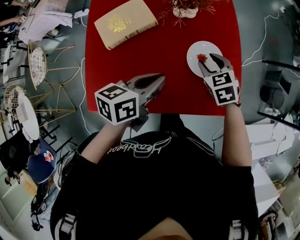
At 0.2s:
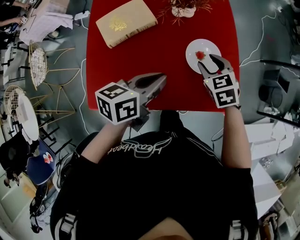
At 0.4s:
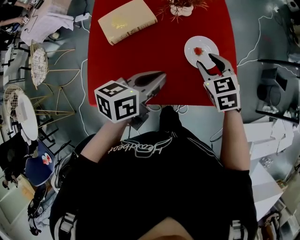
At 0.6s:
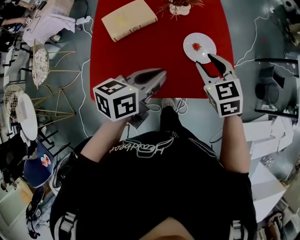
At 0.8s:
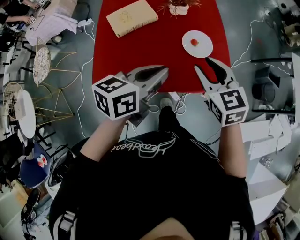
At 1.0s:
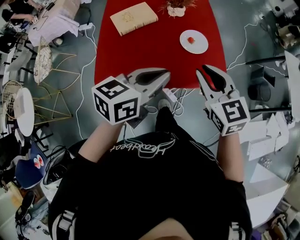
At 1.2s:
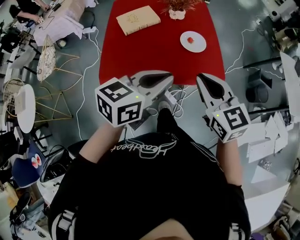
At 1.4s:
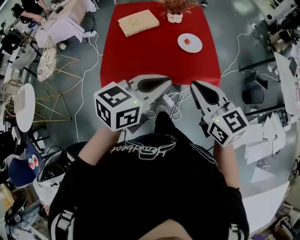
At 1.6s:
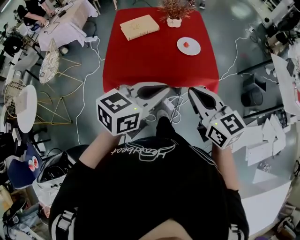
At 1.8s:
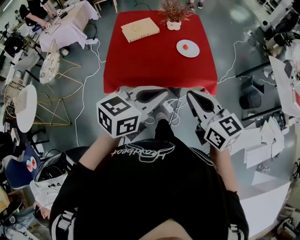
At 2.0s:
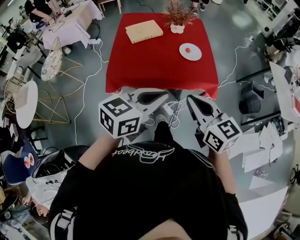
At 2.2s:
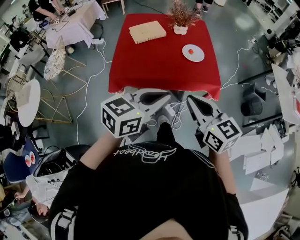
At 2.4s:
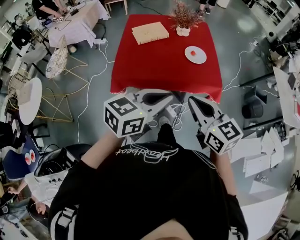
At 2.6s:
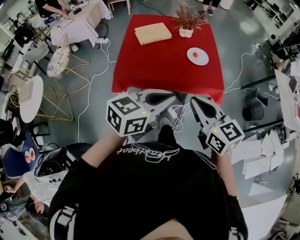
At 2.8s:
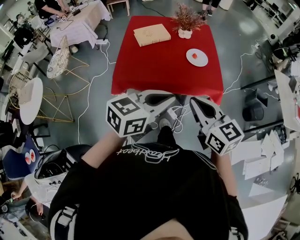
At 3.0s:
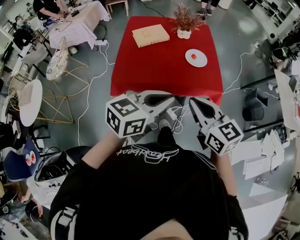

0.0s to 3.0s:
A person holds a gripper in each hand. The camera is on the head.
0.0s to 1.6s: The two grippers go some 40 cm backward and upward. The right gripper tips its fingers upward by roughly 40 degrees, and closes, while the left gripper rotates some 30 degrees.
1.6s to 3.0s: The grippers make only small movements.

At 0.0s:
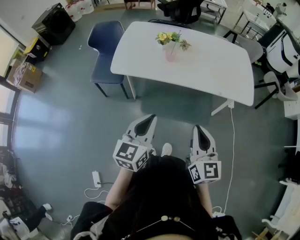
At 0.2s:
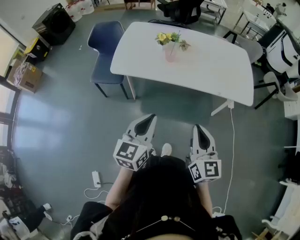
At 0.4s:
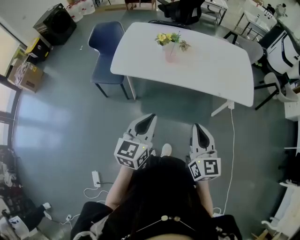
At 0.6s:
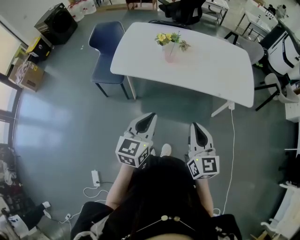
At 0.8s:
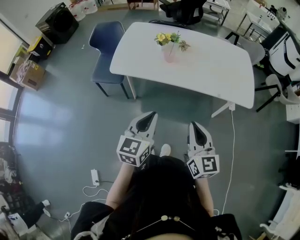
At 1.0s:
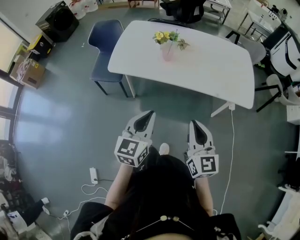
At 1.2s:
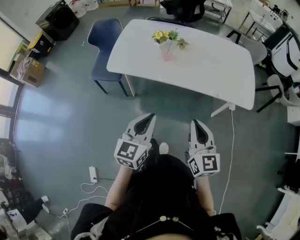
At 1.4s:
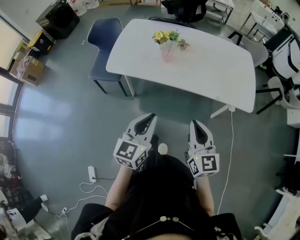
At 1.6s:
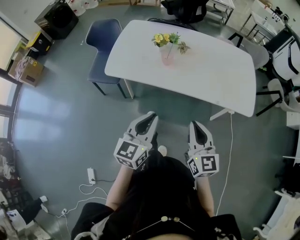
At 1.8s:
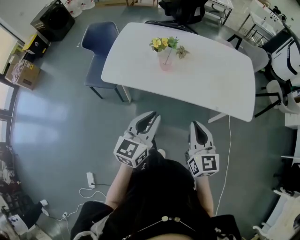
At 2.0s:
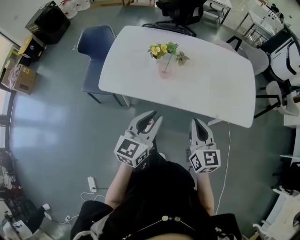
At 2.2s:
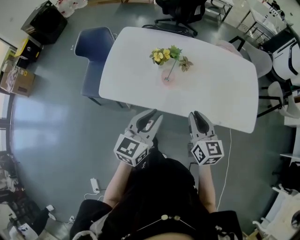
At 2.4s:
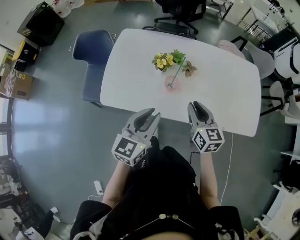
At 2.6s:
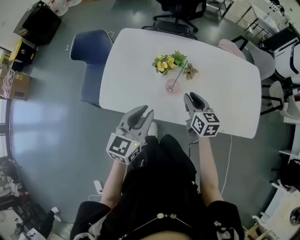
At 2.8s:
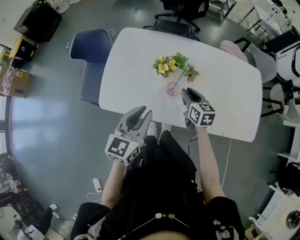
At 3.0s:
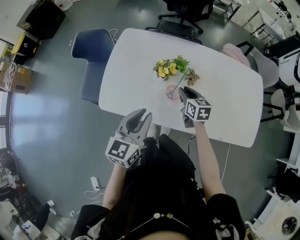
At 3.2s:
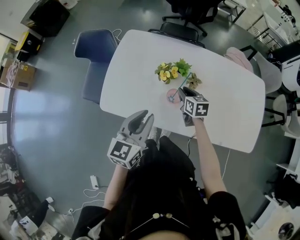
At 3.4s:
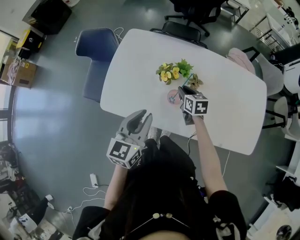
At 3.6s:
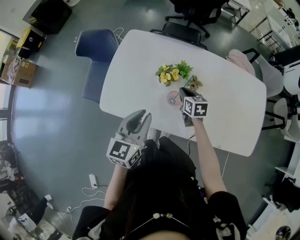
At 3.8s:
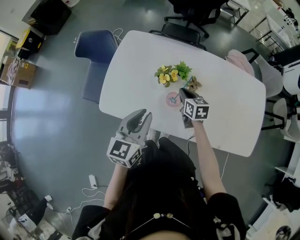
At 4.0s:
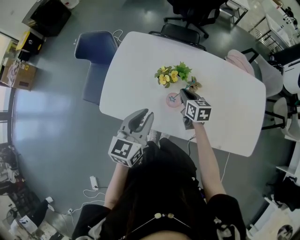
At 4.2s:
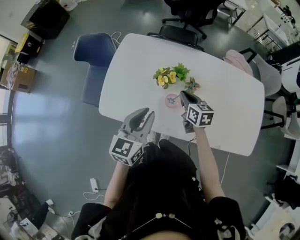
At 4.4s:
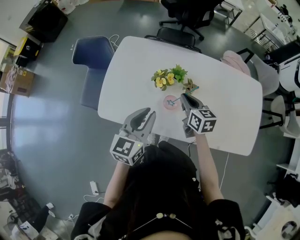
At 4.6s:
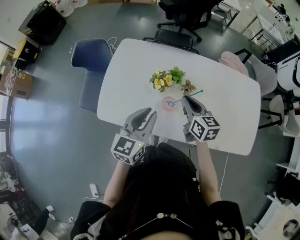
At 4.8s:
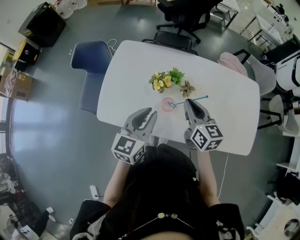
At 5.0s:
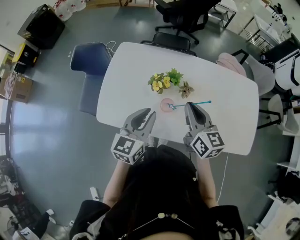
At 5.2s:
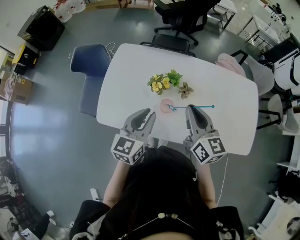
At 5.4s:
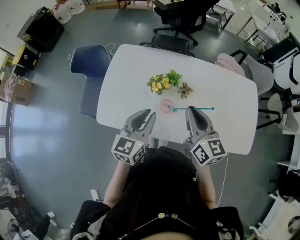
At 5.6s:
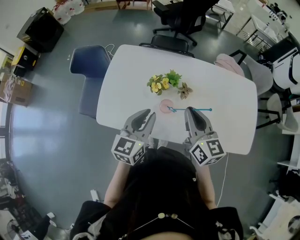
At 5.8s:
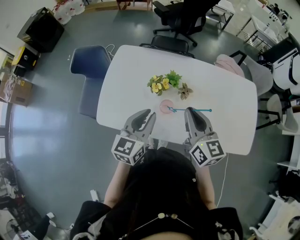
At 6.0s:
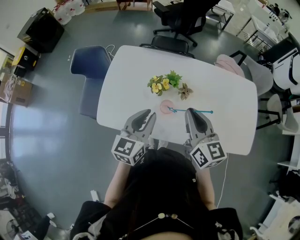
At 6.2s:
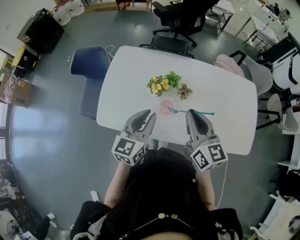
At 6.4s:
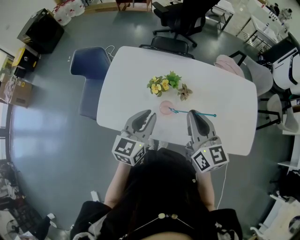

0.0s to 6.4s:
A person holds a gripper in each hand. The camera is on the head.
0.0s to 1.6s: The right gripper goes roughly 10 cm forward. The left gripper travels forward and to the right by some 10 cm.
1.6s to 3.2s: The right gripper is displaced forward and downward by about 50 cm, turns by about 30 degrees, and opens up. The left gripper travels forward by some 30 cm.
3.2s to 4.8s: The right gripper is displaced upward by roughly 15 cm, and changes its angle by roughly 20 degrees. The left gripper shifts by roughly 5 cm.
4.8s to 6.4s: The right gripper goes about 10 cm upward.

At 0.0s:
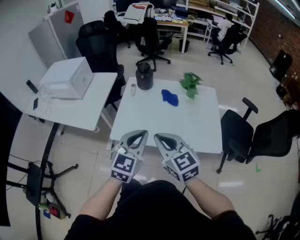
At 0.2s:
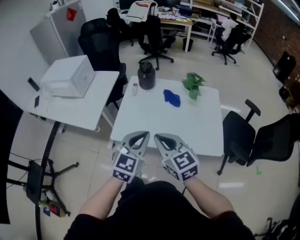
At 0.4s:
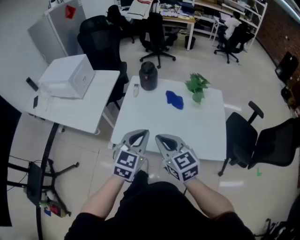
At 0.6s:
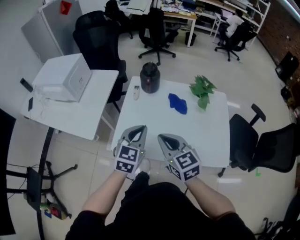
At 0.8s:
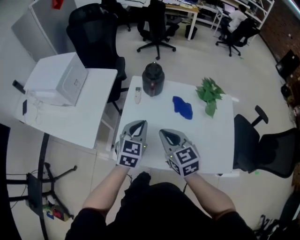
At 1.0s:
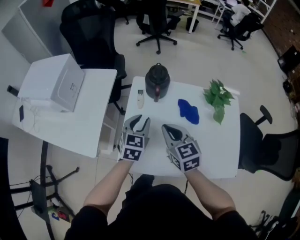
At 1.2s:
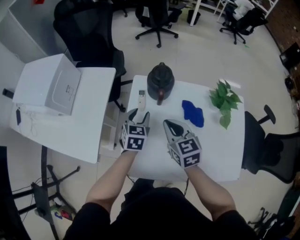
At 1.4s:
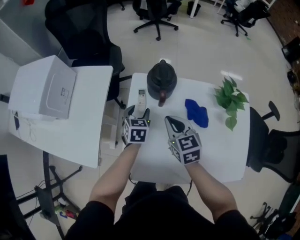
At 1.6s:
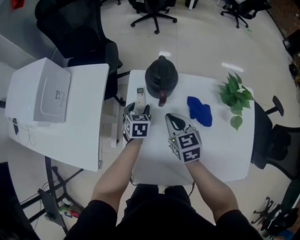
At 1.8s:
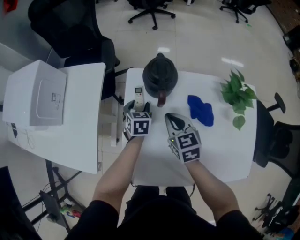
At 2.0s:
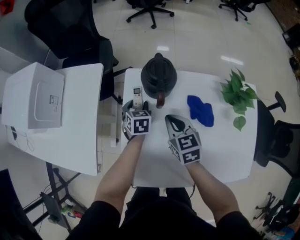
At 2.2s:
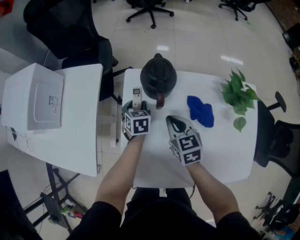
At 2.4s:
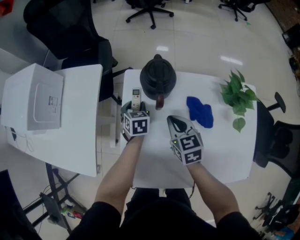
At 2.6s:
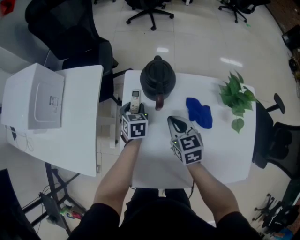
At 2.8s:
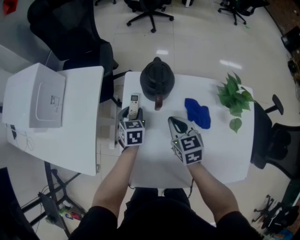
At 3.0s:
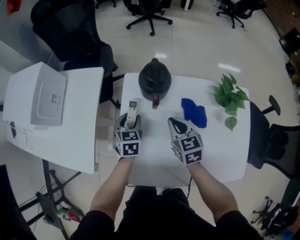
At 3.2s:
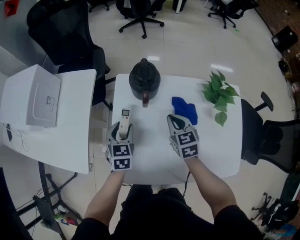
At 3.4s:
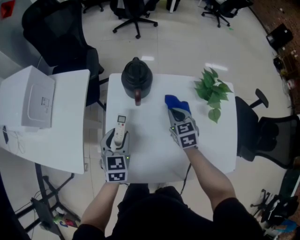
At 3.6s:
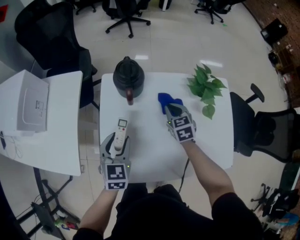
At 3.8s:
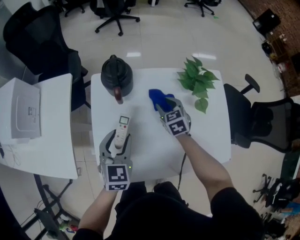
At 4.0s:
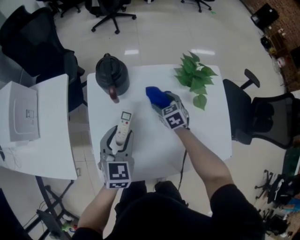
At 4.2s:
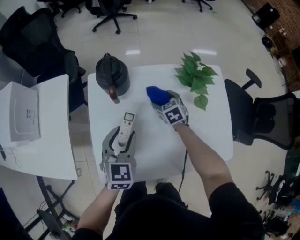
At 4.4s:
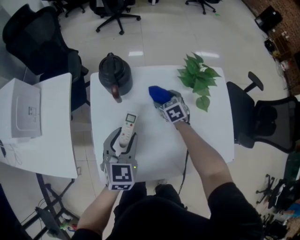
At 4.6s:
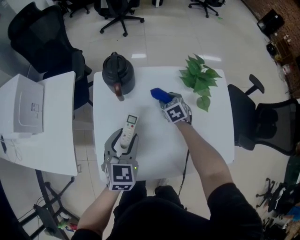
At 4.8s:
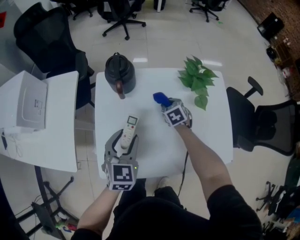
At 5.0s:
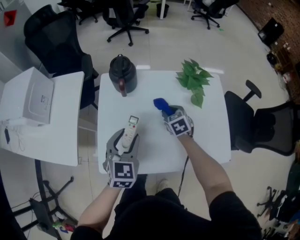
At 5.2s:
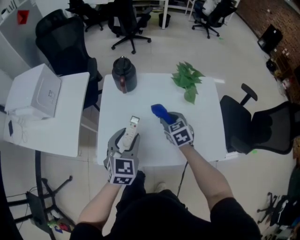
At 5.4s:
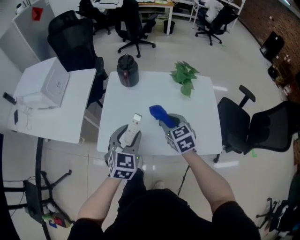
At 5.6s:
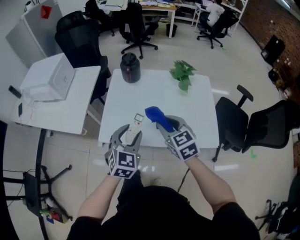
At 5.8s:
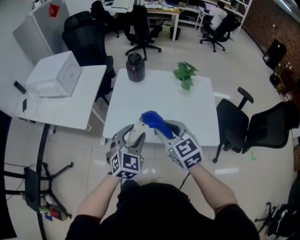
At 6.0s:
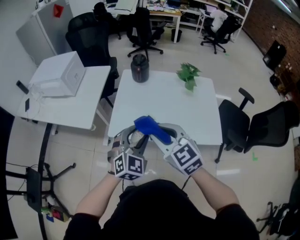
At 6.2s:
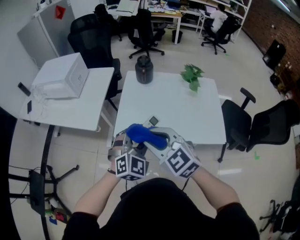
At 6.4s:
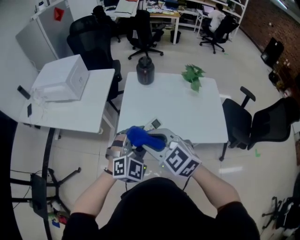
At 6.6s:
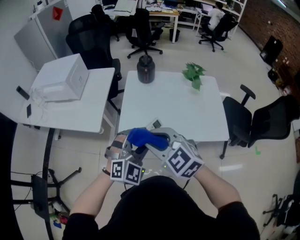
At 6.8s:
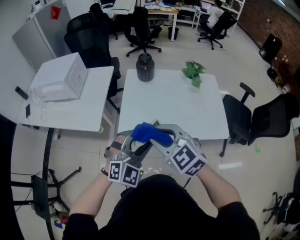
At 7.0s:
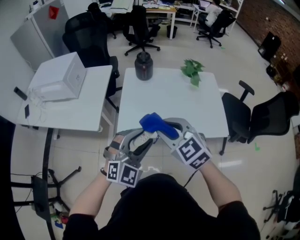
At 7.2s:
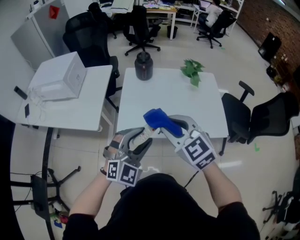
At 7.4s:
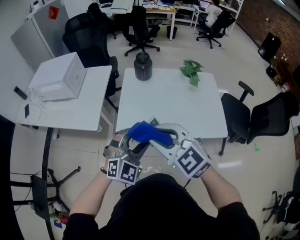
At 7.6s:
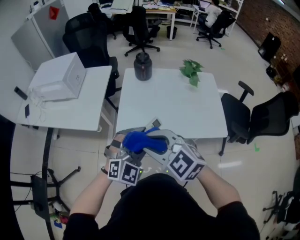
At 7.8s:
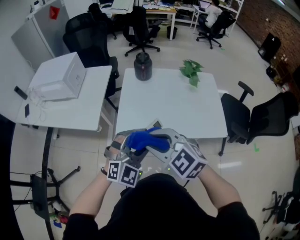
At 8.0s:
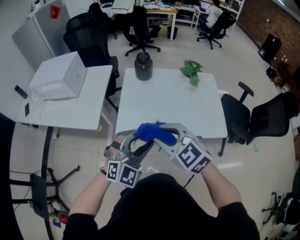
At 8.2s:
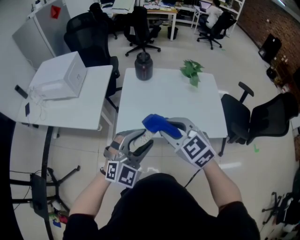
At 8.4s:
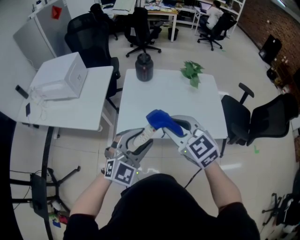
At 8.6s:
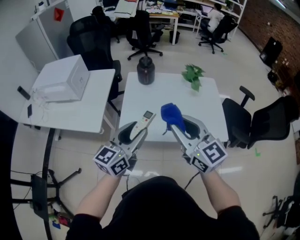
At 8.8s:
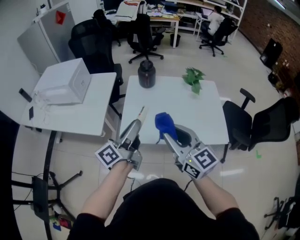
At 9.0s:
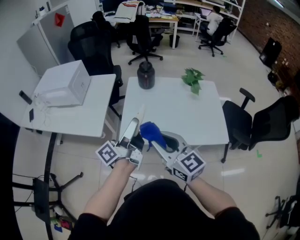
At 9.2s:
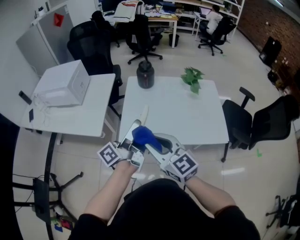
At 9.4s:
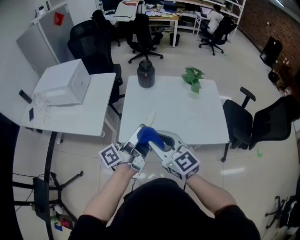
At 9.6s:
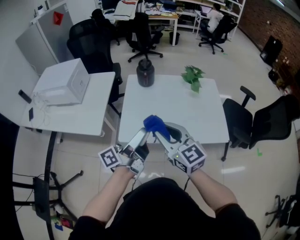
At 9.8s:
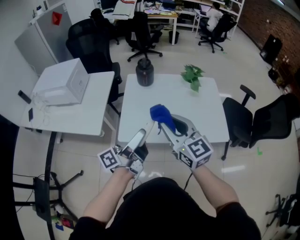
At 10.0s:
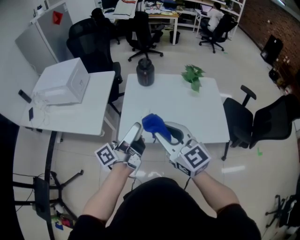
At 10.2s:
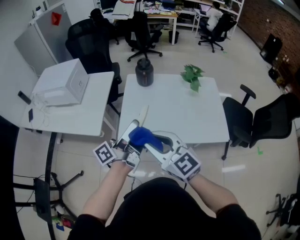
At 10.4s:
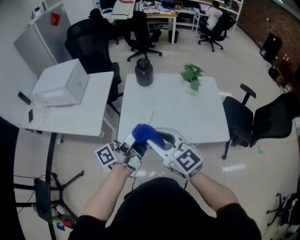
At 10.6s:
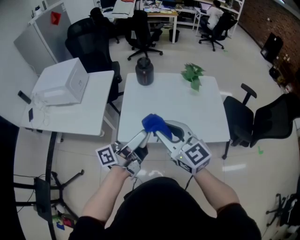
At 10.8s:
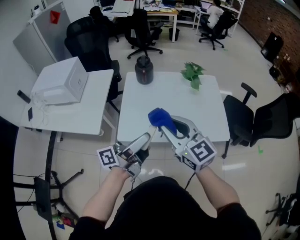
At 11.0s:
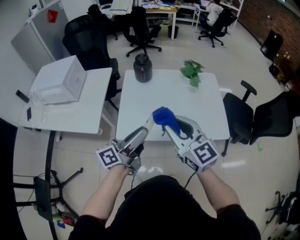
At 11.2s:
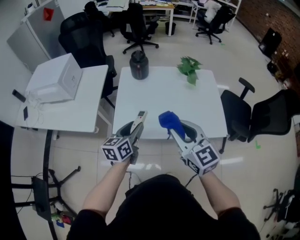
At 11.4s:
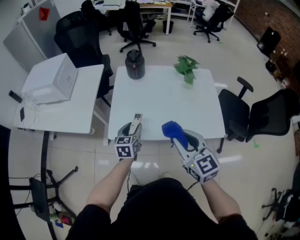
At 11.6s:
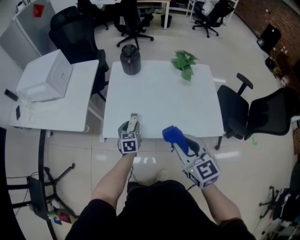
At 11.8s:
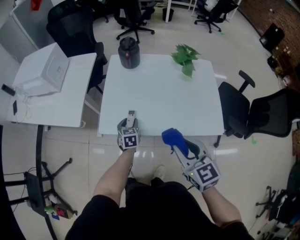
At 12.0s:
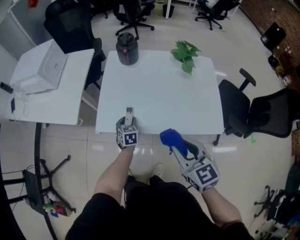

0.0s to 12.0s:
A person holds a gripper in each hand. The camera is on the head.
0.0s to 1.6s: The pair of grippers is taken forward, approximately 50 cm. The right gripper moves downward, approximately 20 cm, and changes its angle by some 30 degrees, while the left gripper moves downward, about 30 cm, points its fingers about 30 degrees further downward, and opens its fingers.
1.6s to 3.0s: The left gripper changes place by roughly 5 cm.
3.0s to 4.4s: The right gripper travels to the right, downward and forward by roughly 20 cm, and opens its fingers. The left gripper travels to the right, backward and upward by some 20 cm, and changes its angle by about 30 degrees.
4.4s to 6.0s: The left gripper is displaced backward by some 30 cm, and changes its angle by about 20 degrees; the right gripper moves backward and upward, some 60 cm, tilts its fingers roughly 30 degrees upward, and closes up.
6.0s to 7.6s: The left gripper shifts by roughly 5 cm, and turns by approximately 20 degrees; the right gripper swings left and right, about 10 cm each way, with 2 reversals.
7.6s to 9.0s: The left gripper goes roughly 10 cm forward and to the left, and twists about 110 degrees counterclockwise, seen from behind. Meanwhile the right gripper changes its angle by roughly 30 degrees.
10.4s to 12.0s: The left gripper shifts about 35 cm downward, and angles its fingers downward, by some 70 degrees. Meanwhile the right gripper heads to the right and downward, covering approximately 20 cm, and rotates roughly 20 degrees.

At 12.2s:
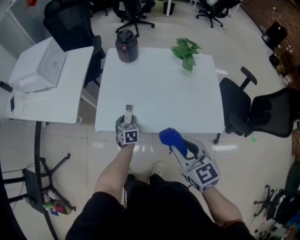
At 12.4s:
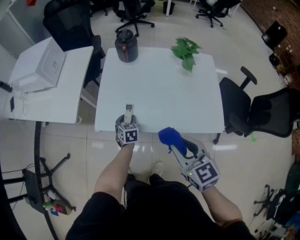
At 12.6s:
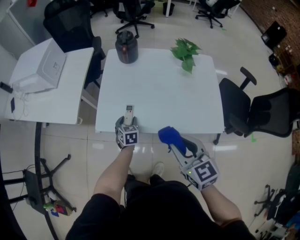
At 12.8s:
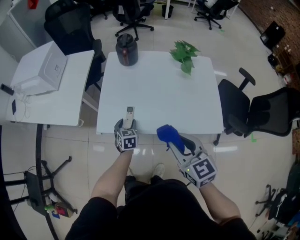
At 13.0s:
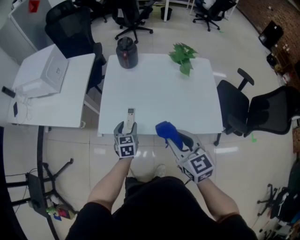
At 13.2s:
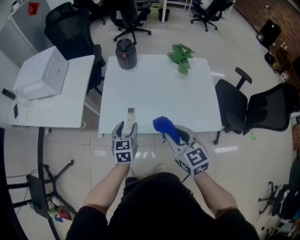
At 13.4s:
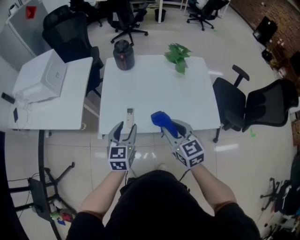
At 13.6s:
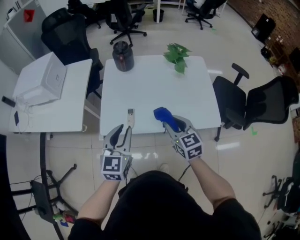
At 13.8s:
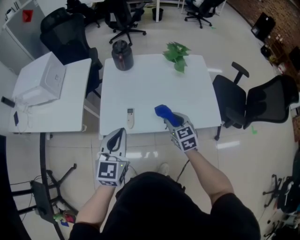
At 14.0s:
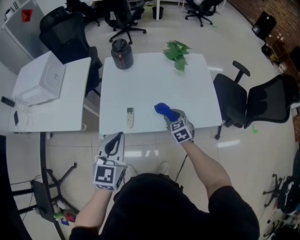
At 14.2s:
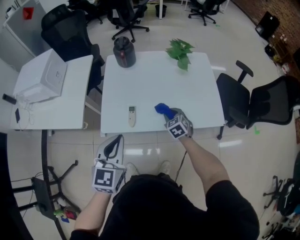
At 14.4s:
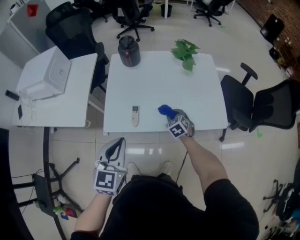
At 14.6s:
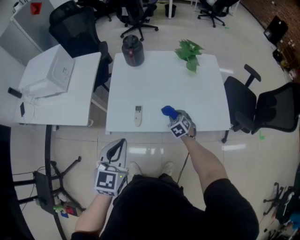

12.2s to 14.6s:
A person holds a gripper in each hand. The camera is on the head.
12.2s to 13.4s: The right gripper is displaced forward by some 5 cm, while the left gripper travels upward by some 20 cm, and swivels roughly 30 degrees.
13.4s to 14.6s: The right gripper heads downward and forward, covering about 25 cm, and turns by some 30 degrees. The left gripper moves backward and upward, approximately 10 cm, and closes.
